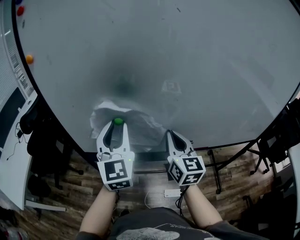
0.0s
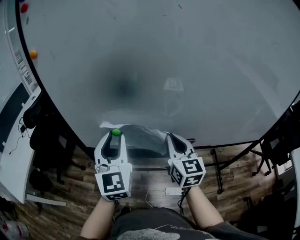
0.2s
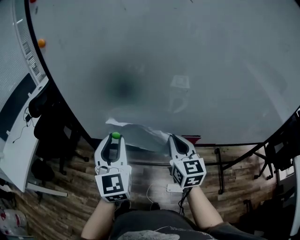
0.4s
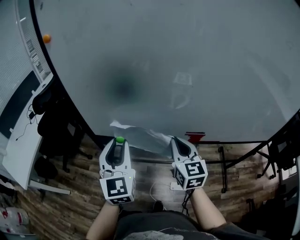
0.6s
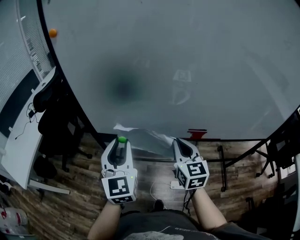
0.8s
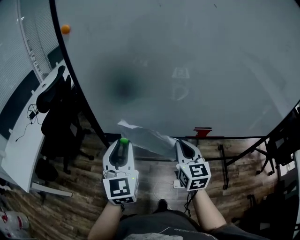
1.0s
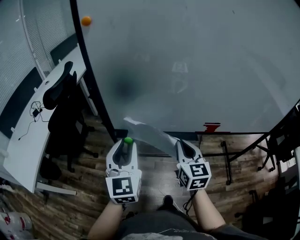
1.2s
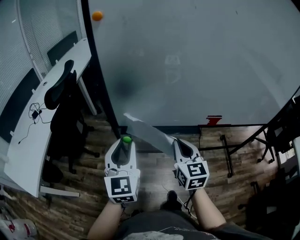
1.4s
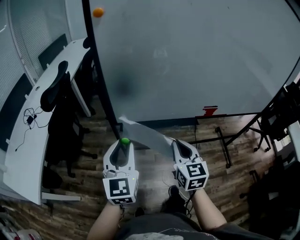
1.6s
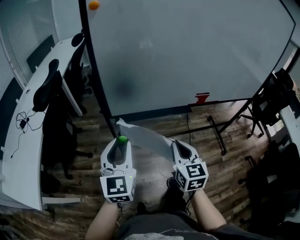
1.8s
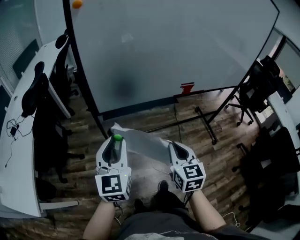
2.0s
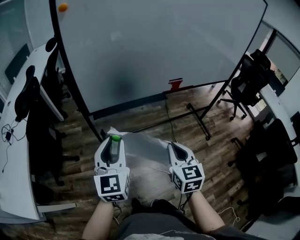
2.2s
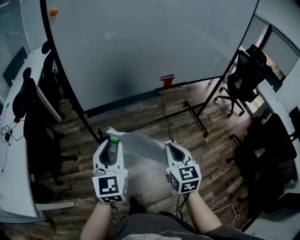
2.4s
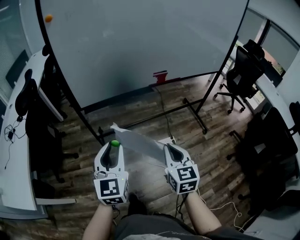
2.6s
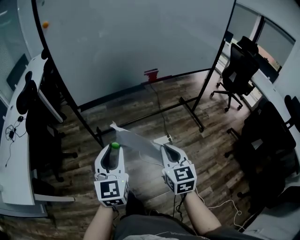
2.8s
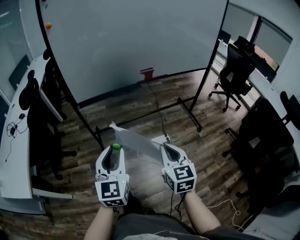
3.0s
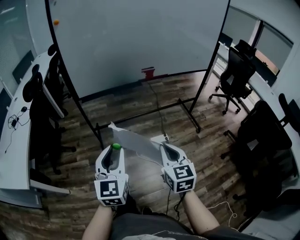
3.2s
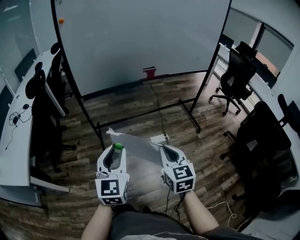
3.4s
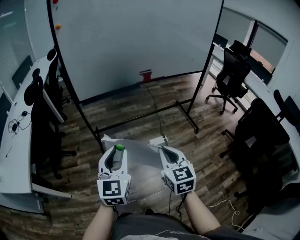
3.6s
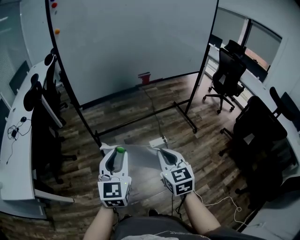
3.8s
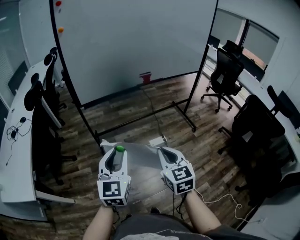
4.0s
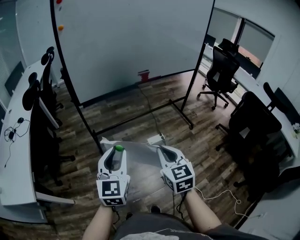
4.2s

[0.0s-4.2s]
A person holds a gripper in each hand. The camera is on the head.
0.0s to 1.4s: Both grippers move to the left, backward and downward, roughly 25 cm.
1.4s to 2.8s: Both grippers travel together backward and to the right, some 30 cm. The left gripper rotates roughly 20 degrees.
2.8s to 4.2s: The right gripper moves backward and to the left, about 15 cm; the left gripper heads backward, covering approximately 10 cm.

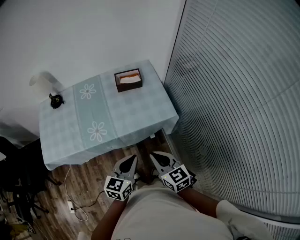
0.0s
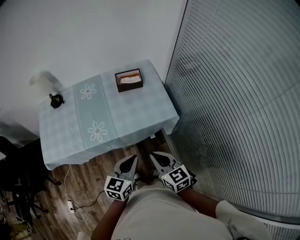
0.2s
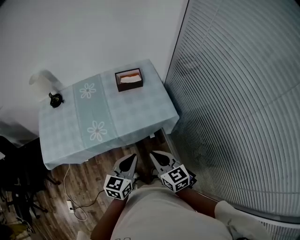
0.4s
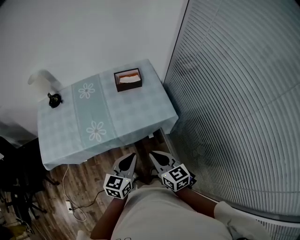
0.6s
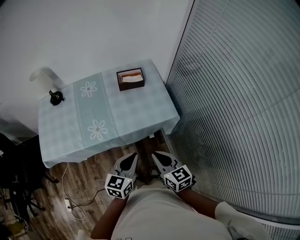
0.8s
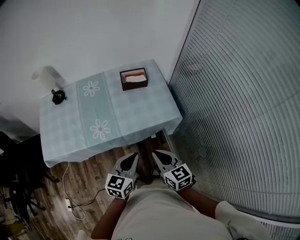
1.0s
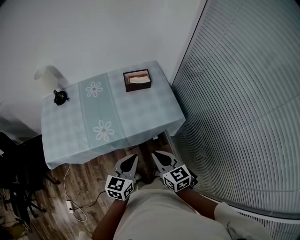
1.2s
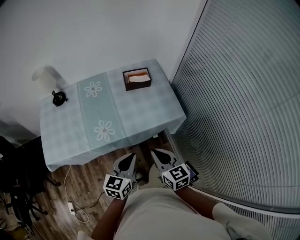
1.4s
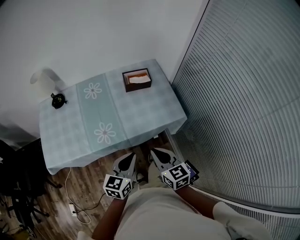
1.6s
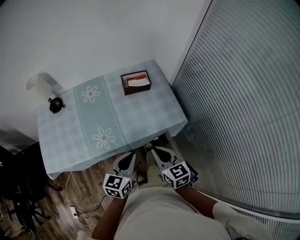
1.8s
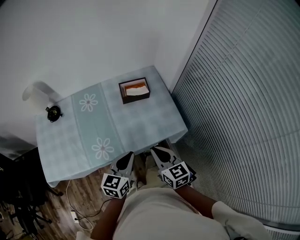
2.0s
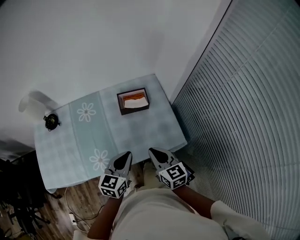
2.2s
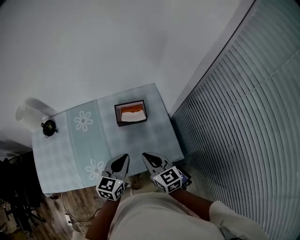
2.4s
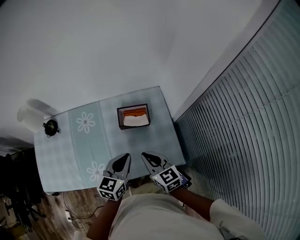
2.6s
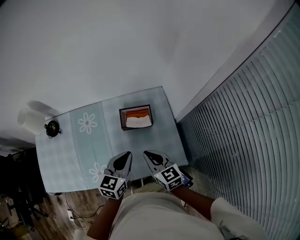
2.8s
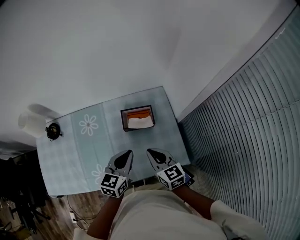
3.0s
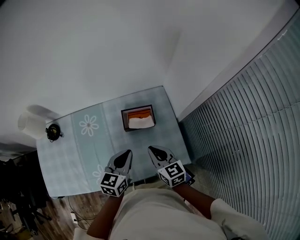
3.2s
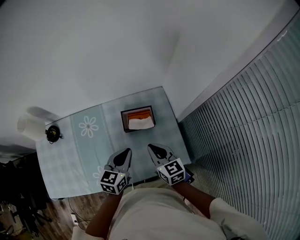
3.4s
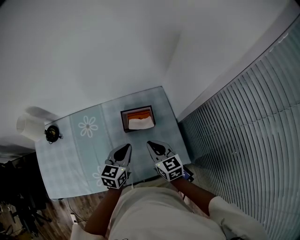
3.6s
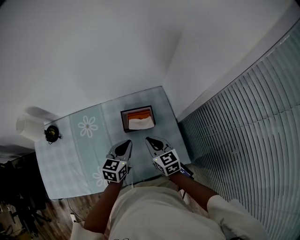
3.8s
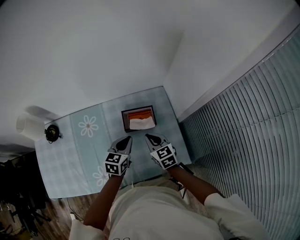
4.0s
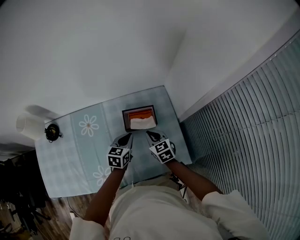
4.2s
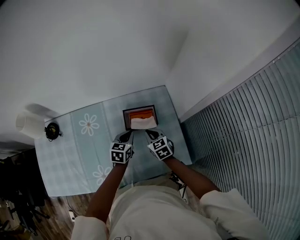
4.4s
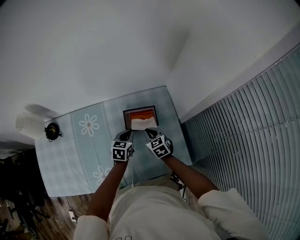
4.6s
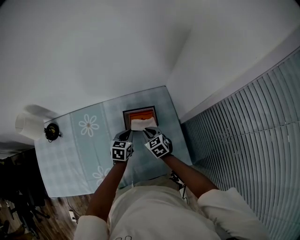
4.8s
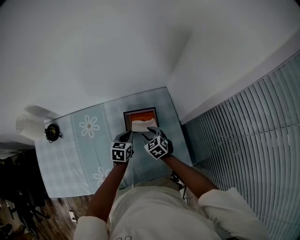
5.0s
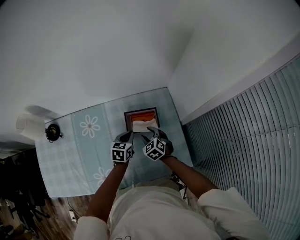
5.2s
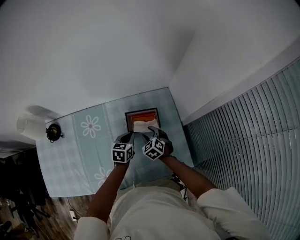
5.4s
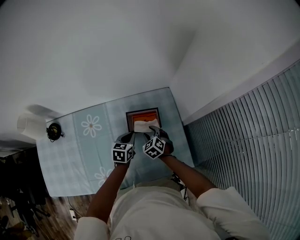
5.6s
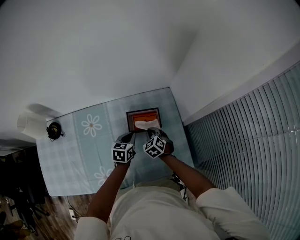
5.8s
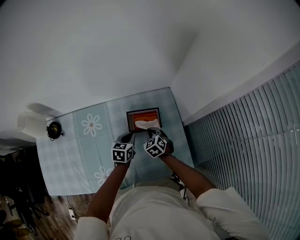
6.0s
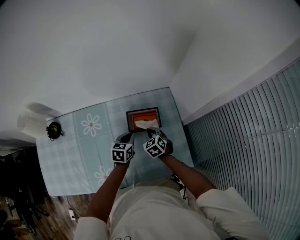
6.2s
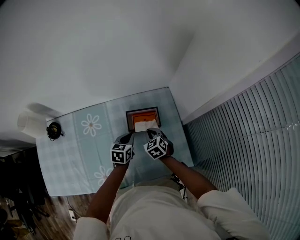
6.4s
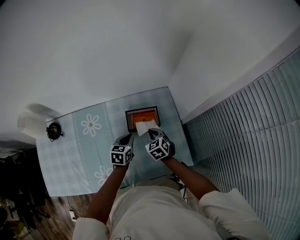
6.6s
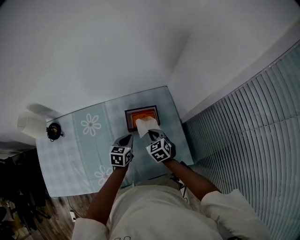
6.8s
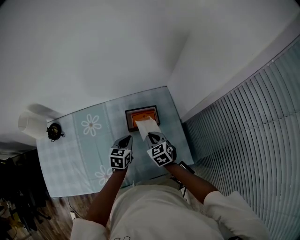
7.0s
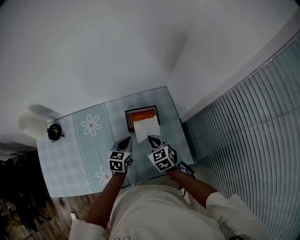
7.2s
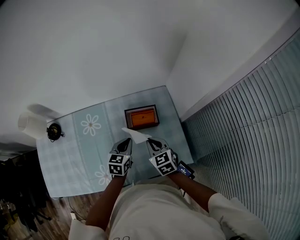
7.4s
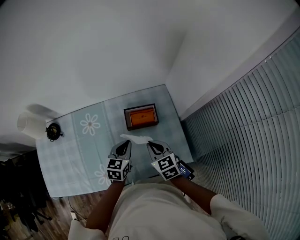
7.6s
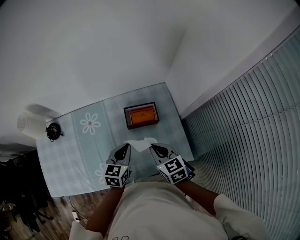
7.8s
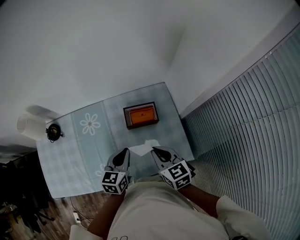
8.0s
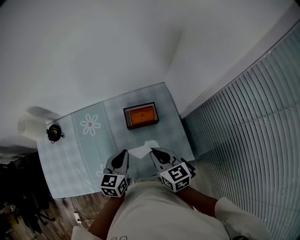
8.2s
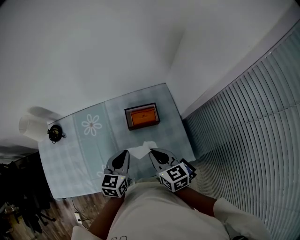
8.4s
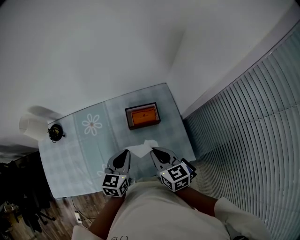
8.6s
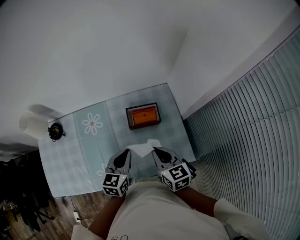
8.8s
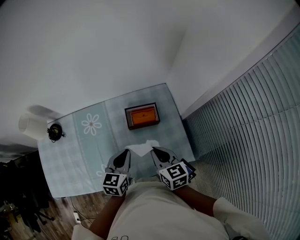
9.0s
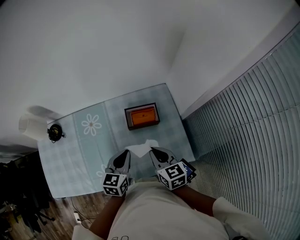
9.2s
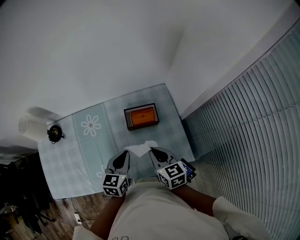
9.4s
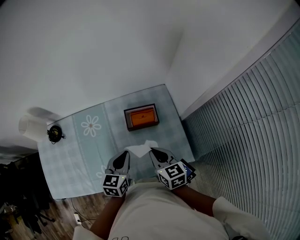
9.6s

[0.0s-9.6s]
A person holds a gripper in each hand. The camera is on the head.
0.0s to 1.6s: Both grippers move to the left, some 10 cm.
1.6s to 3.2s: Both grippers travel together forward, some 35 cm.
3.2s to 4.8s: Both grippers travel together downward and forward, approximately 20 cm. The right gripper turns by roughly 30 degrees.
4.8s to 6.4s: The right gripper opens and closes again.
6.4s to 8.0s: The grippers both shift upward and backward by about 20 cm. The right gripper turns by roughly 30 degrees.
8.0s to 9.6s: The grippers stay close to where they were, moving slightly.

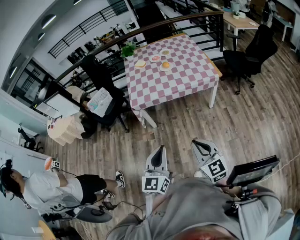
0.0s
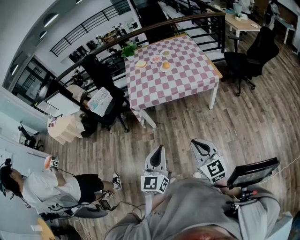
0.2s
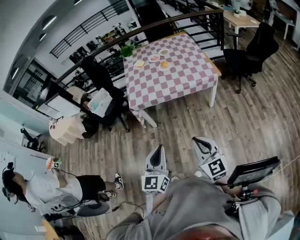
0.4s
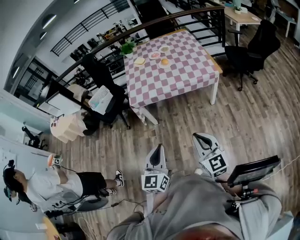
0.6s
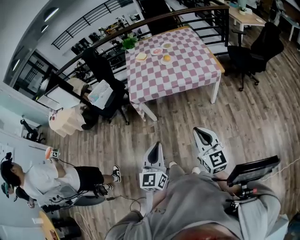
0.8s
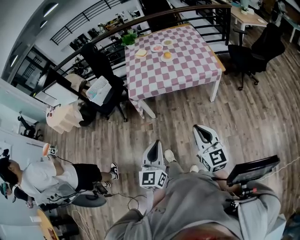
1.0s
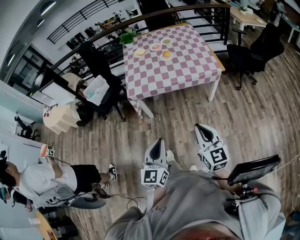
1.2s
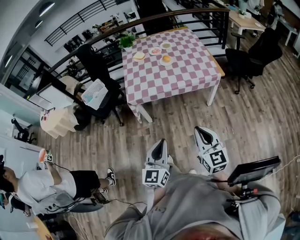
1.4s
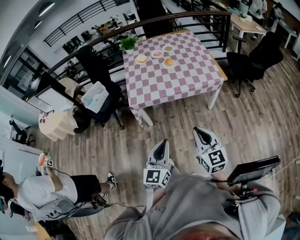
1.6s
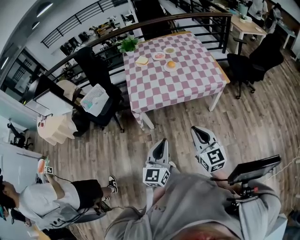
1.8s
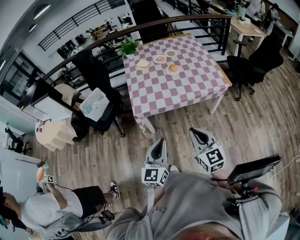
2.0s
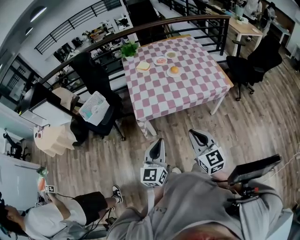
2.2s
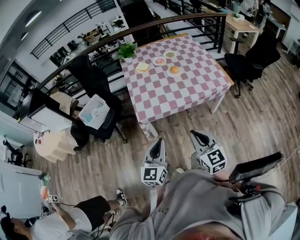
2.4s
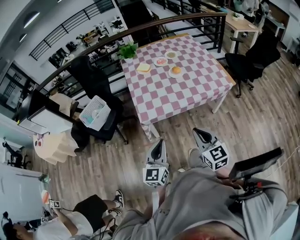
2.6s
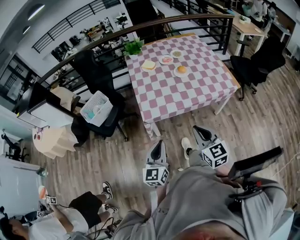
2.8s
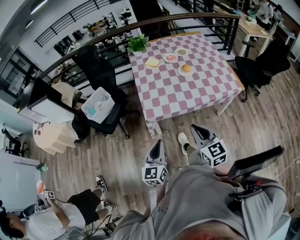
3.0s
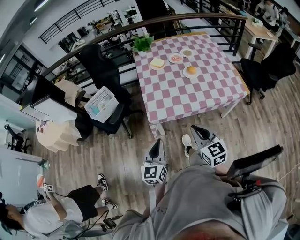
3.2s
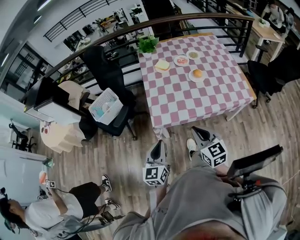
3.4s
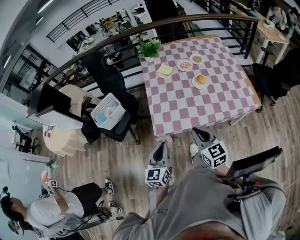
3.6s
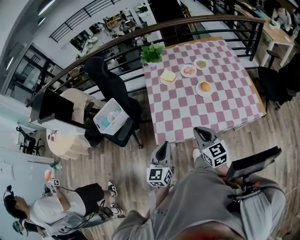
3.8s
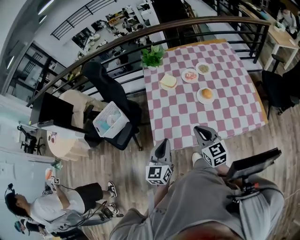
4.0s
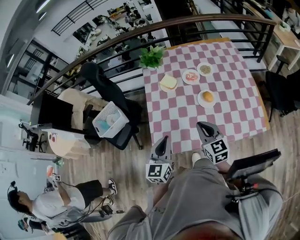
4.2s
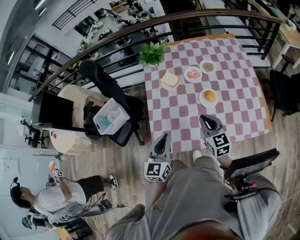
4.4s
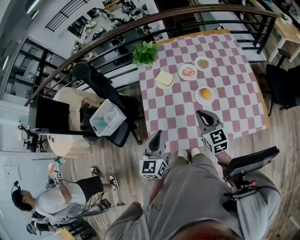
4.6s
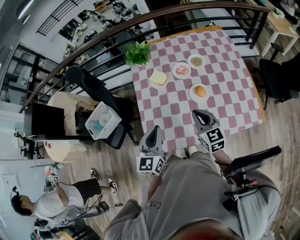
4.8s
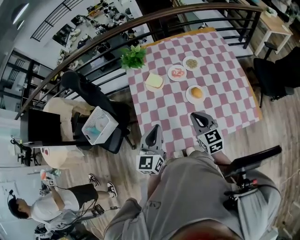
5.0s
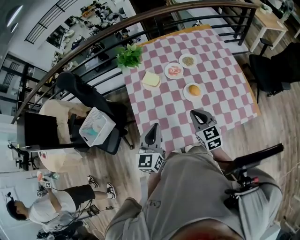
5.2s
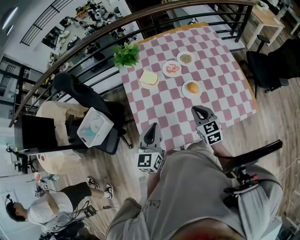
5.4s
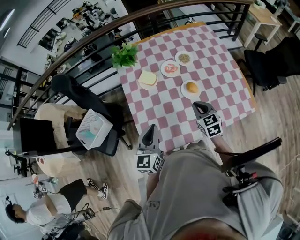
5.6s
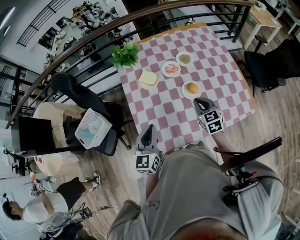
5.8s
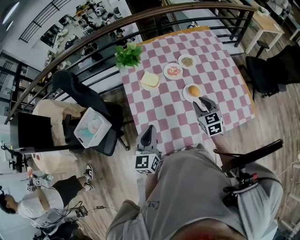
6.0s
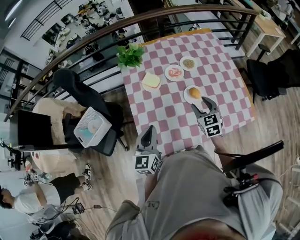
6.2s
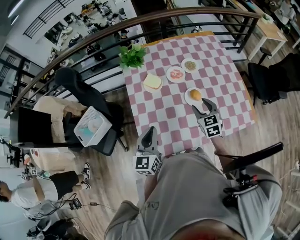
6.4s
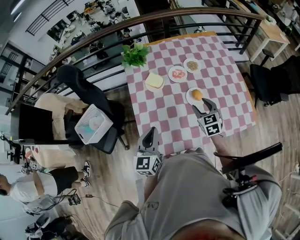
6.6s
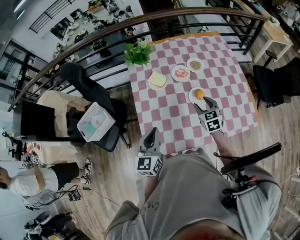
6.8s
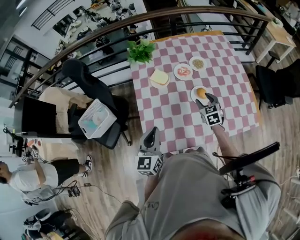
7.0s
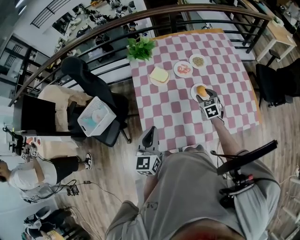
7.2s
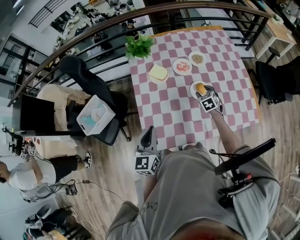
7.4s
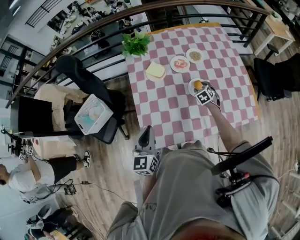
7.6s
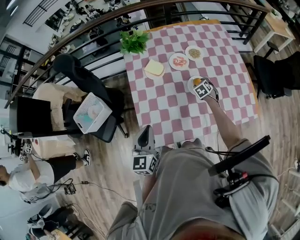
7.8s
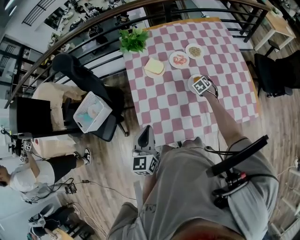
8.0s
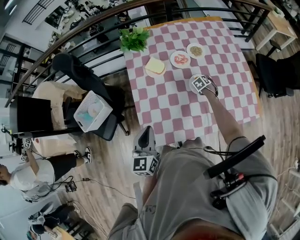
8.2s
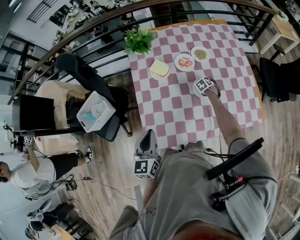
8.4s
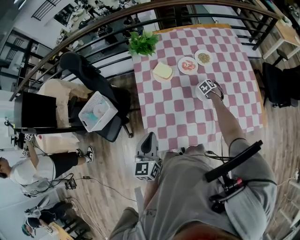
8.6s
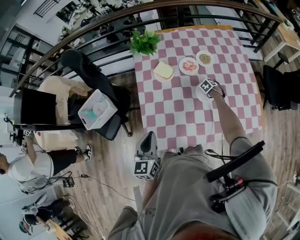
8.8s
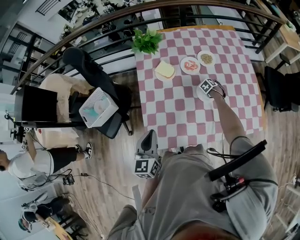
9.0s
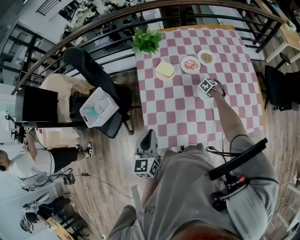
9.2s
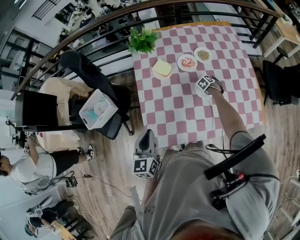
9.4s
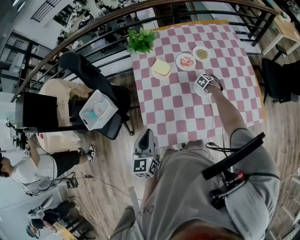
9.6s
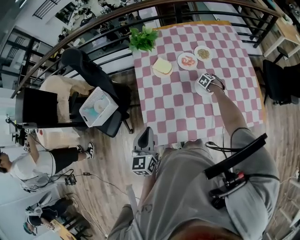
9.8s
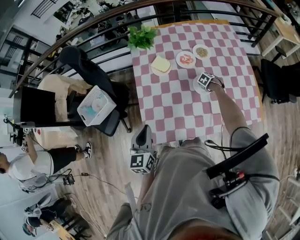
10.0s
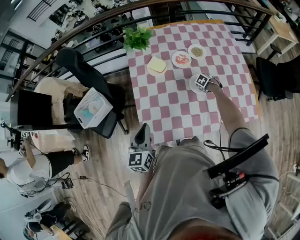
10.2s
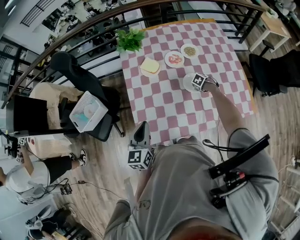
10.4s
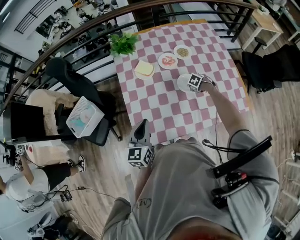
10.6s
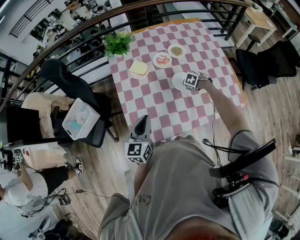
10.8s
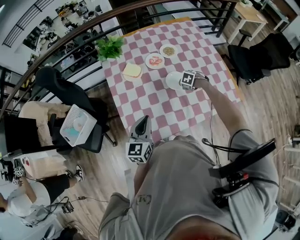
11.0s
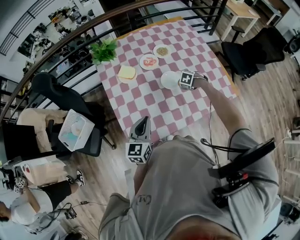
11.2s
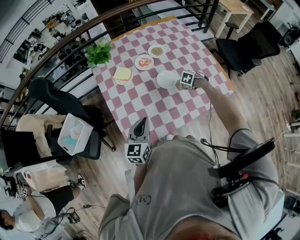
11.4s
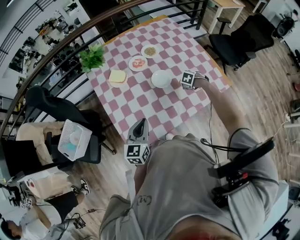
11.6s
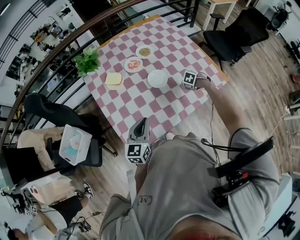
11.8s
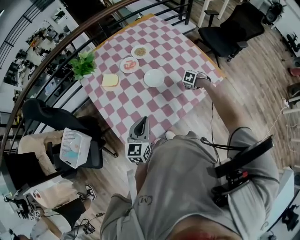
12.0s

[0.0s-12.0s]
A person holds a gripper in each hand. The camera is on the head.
0.0s to 1.6s: The two grippers go some 10 cm forward.
1.6s to 3.0s: The grippers both shift to the left and forward by approximately 30 cm.
3.0s to 4.4s: Both grippers travel together forward, some 40 cm.
4.4s to 6.0s: The two grippers go approximately 5 cm forward.
6.0s to 7.6s: The right gripper moves downward and forward, about 20 cm, rotates approximately 30 degrees, and opens.
7.6s to 9.0s: The right gripper is displaced downward by roughly 15 cm, and changes its angle by approximately 20 degrees.
9.0s to 10.4s: The right gripper changes place by roughly 10 cm.
10.4s to 12.0s: The left gripper ends up approximately 15 cm from where it was, and changes its angle by approximately 30 degrees; the right gripper changes place by roughly 20 cm.
